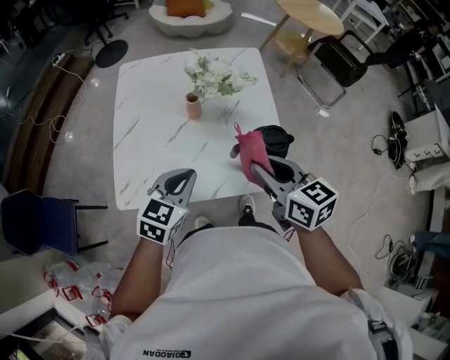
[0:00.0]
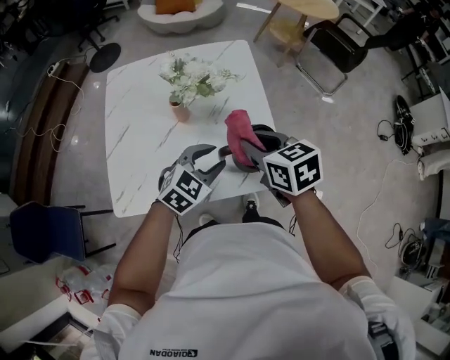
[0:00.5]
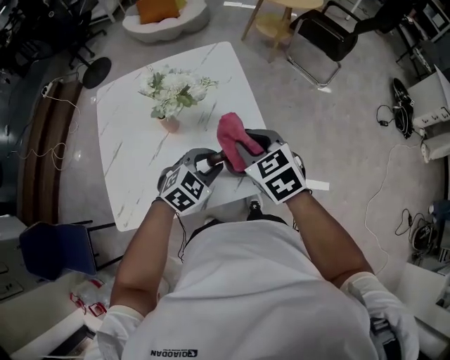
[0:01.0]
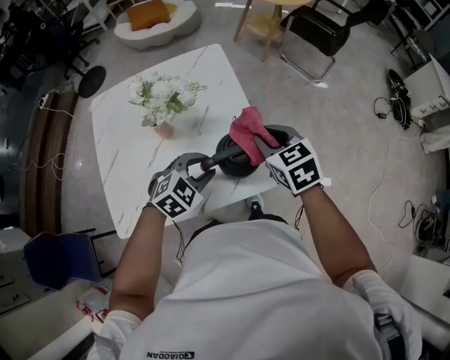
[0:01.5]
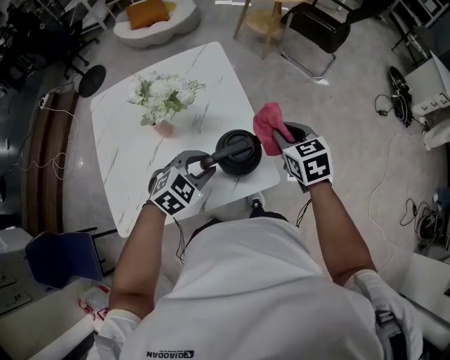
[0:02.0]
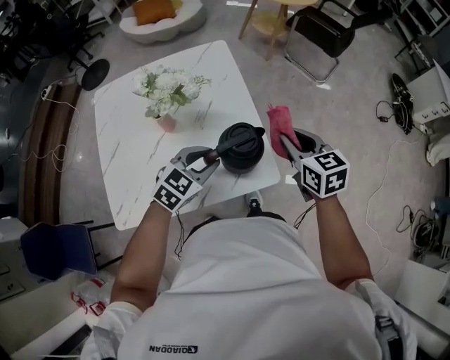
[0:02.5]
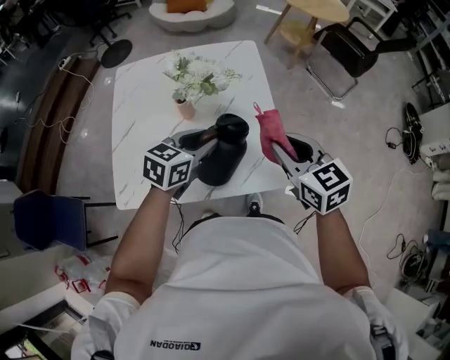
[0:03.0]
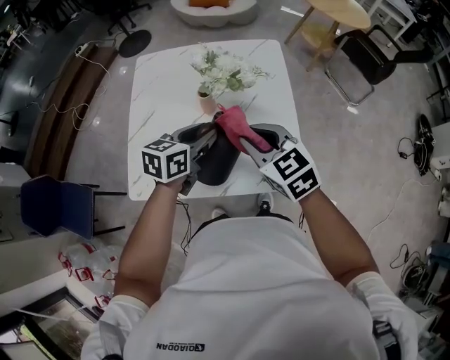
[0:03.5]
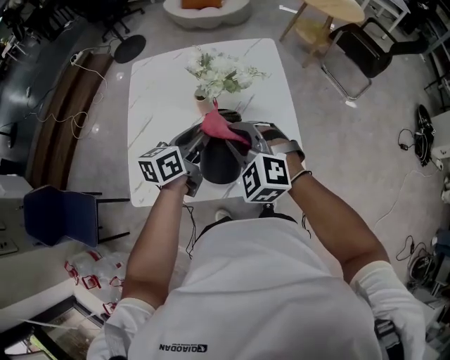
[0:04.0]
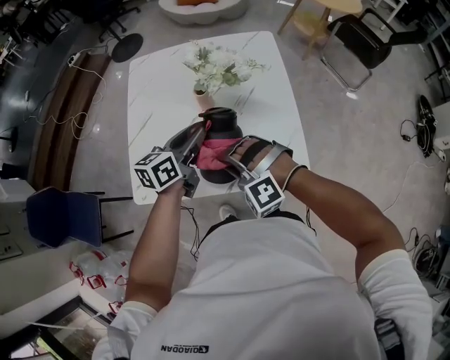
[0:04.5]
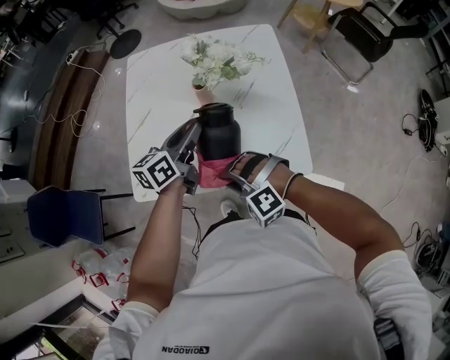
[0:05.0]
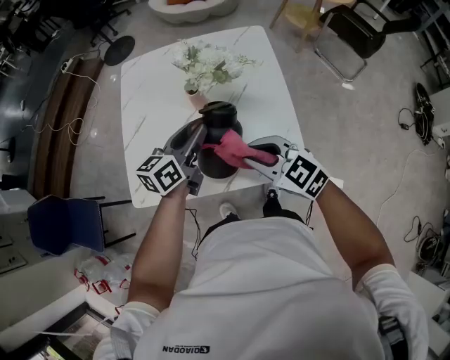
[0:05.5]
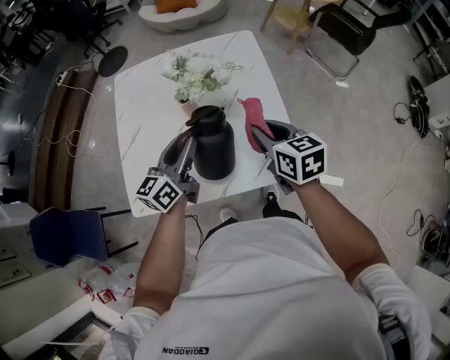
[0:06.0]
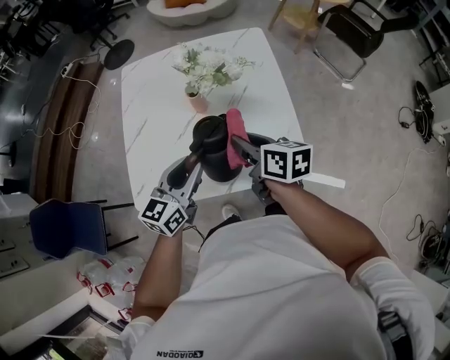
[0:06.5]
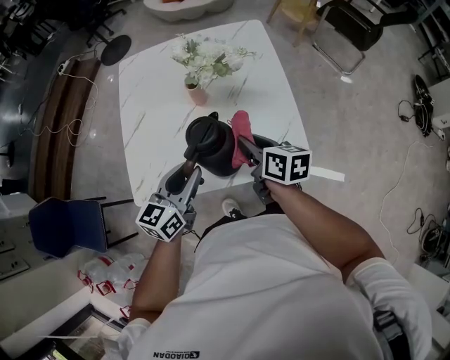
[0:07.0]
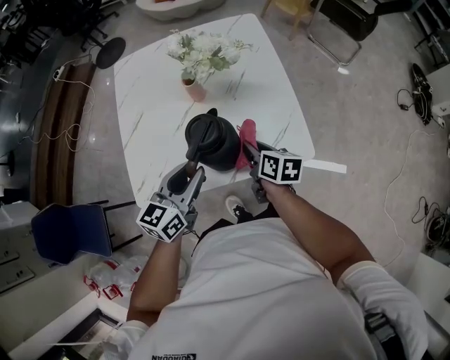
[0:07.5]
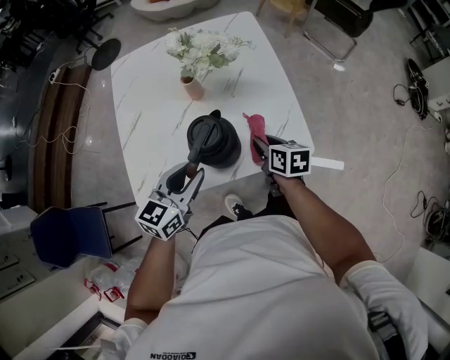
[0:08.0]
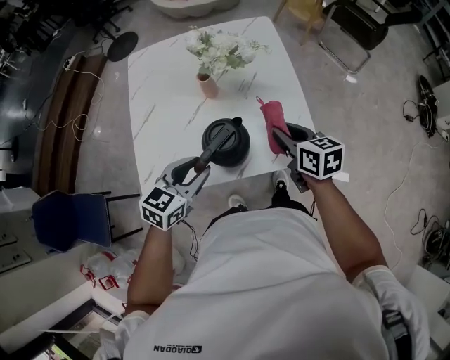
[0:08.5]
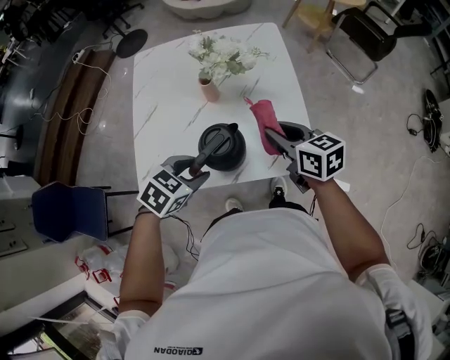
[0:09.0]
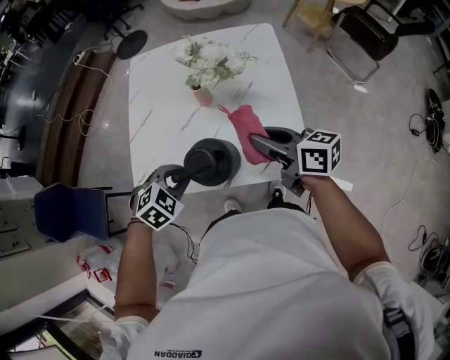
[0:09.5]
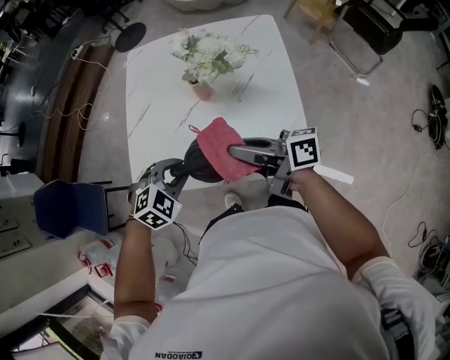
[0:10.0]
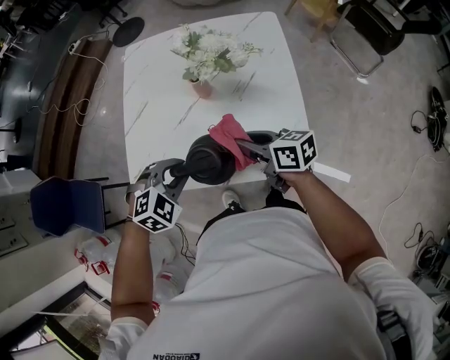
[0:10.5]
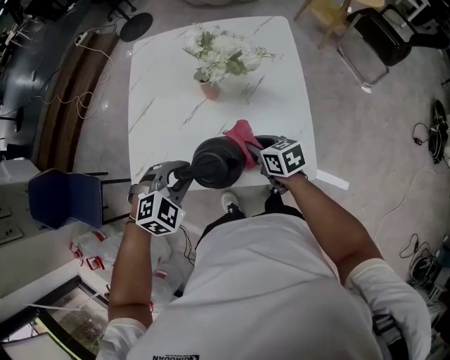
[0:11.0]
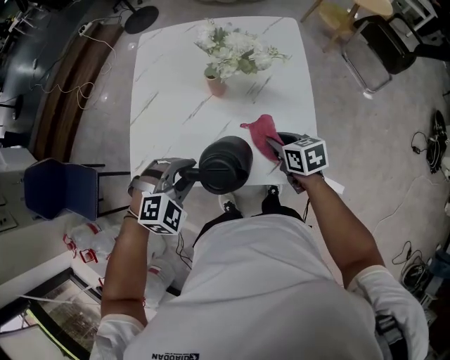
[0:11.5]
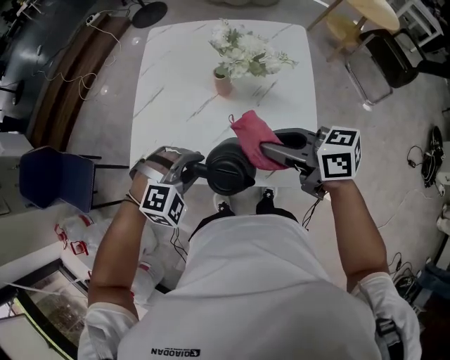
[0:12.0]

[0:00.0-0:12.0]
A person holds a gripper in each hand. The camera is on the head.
0:00.0 to 0:02.0: The right gripper shifts by approximately 25 cm, and rotates about 30 degrees. Meanwhile the left gripper moves roughly 20 cm, rotates approximately 40 degrees, and opens.
0:02.0 to 0:04.0: The right gripper ends up approximately 30 cm from where it was, and rotates around the line of its fingers by roughly 60 degrees, counterclockwise from behind, while the left gripper changes place by about 15 cm, and twists about 60 degrees counterclockwise, seen from behind.
0:04.0 to 0:06.0: The right gripper is displaced to the right by approximately 10 cm, and rotates around the line of its fingers by approximately 70 degrees, clockwise from behind.
0:06.0 to 0:08.0: The left gripper shifts some 10 cm backward, and changes its angle by approximately 30 degrees. The right gripper heads downward and backward, covering some 15 cm, and changes its angle by approximately 20 degrees.
0:08.0 to 0:10.0: The right gripper goes some 15 cm upward, and angles its fingers upward, by roughly 40 degrees. The left gripper tilts its fingers some 40 degrees downward.
0:10.0 to 0:12.0: The left gripper rotates approximately 30 degrees. The right gripper moves some 15 cm downward and comes back, and changes its angle by about 30 degrees.

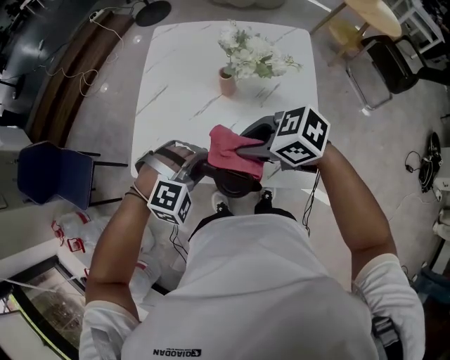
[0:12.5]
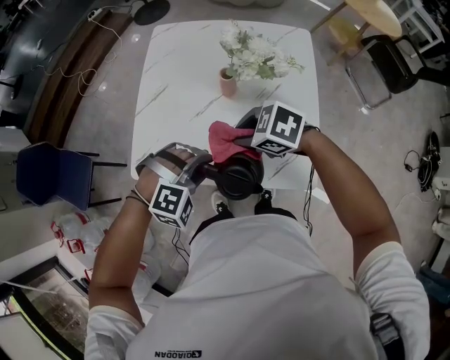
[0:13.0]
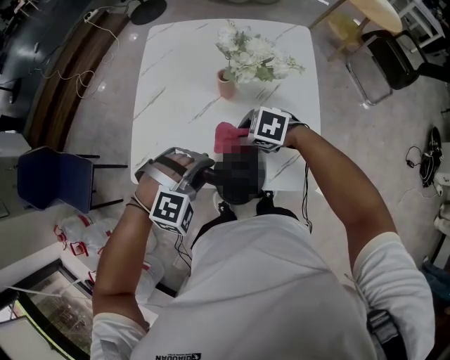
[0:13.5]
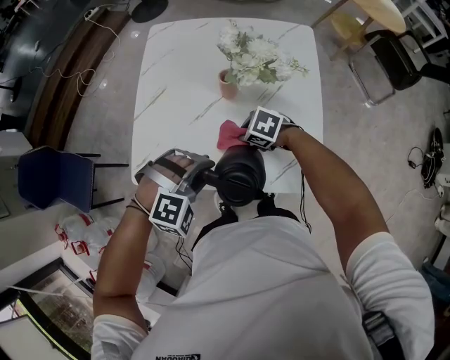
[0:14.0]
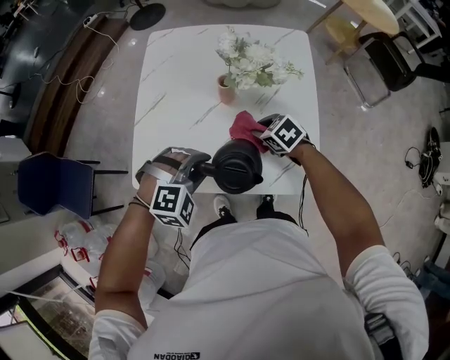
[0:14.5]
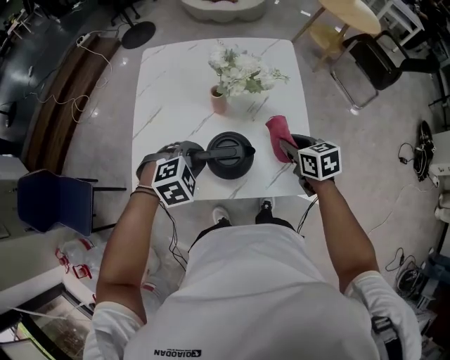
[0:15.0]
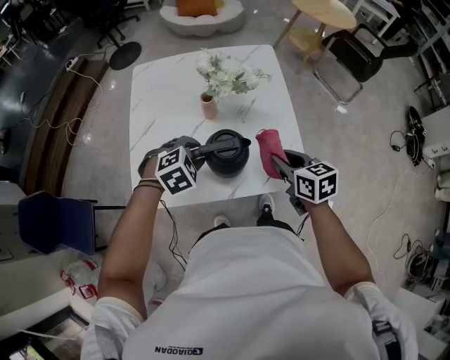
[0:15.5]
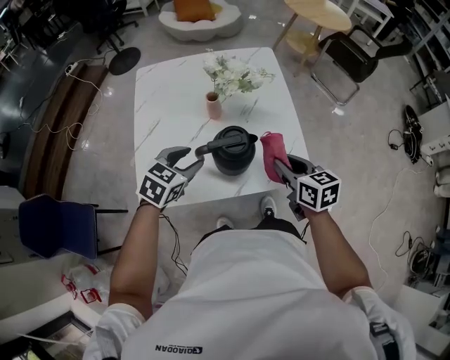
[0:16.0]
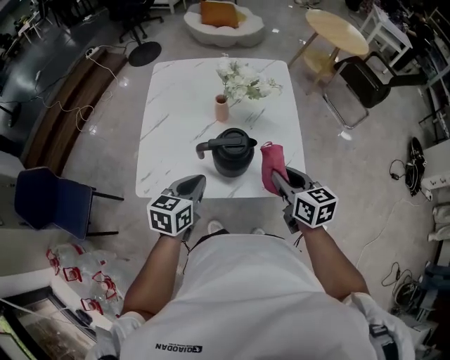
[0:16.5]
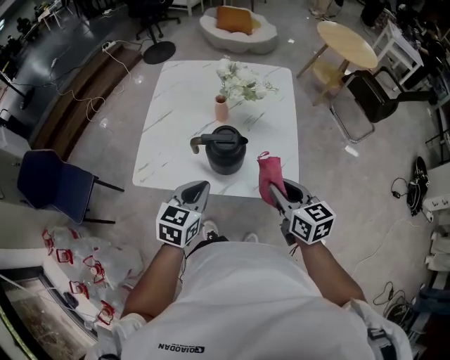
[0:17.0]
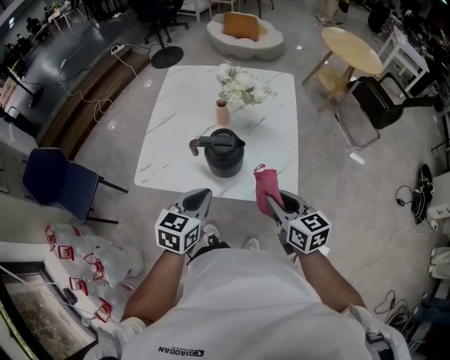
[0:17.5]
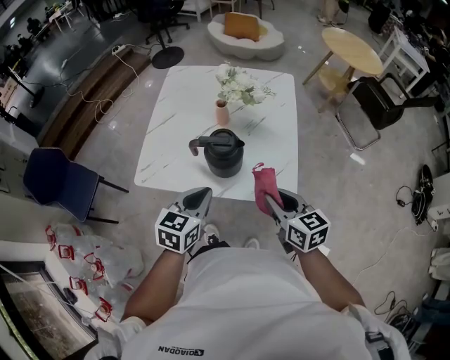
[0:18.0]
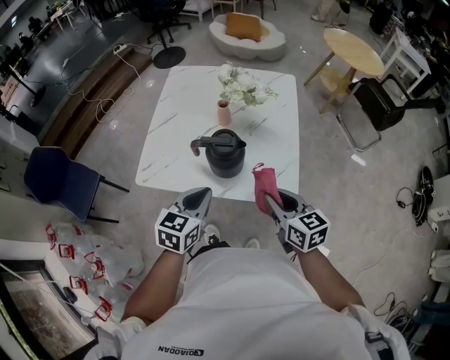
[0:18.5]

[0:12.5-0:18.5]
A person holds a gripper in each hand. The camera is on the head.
0:12.5 to 0:14.5: The right gripper travels downward by some 15 cm, and rotates approximately 30 degrees.
0:14.5 to 0:16.5: The left gripper changes place by some 5 cm, rolls counterclockwise, seen from behind, by about 80 degrees, and closes up, while the right gripper heads upward, covering some 15 cm, and changes its angle by some 50 degrees.
0:16.5 to 0:18.5: The left gripper shifts approximately 10 cm backward and to the right; the right gripper moves backward, approximately 5 cm.

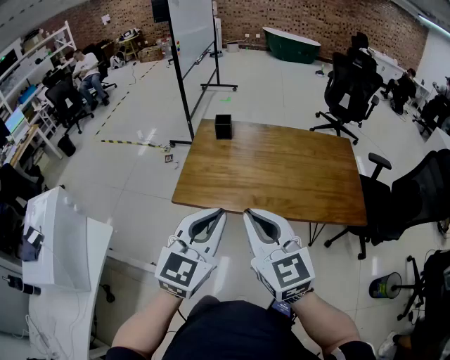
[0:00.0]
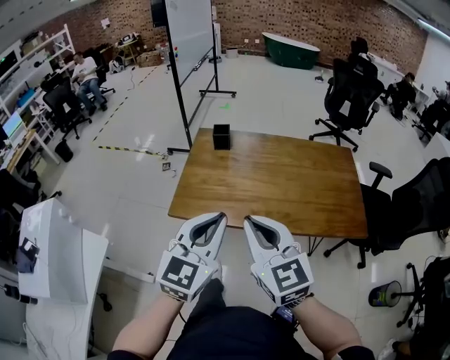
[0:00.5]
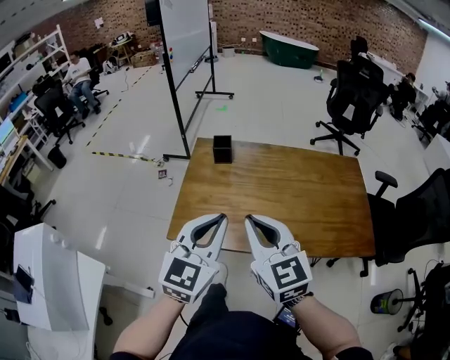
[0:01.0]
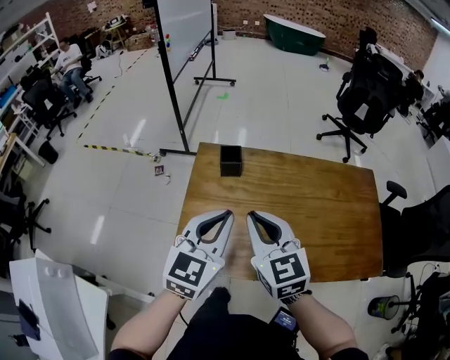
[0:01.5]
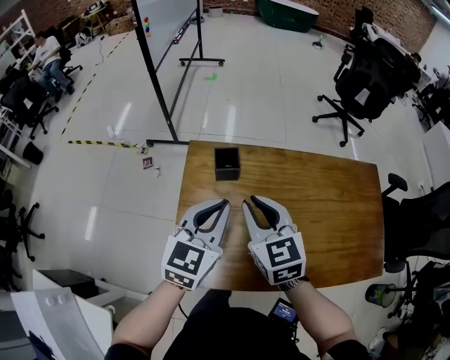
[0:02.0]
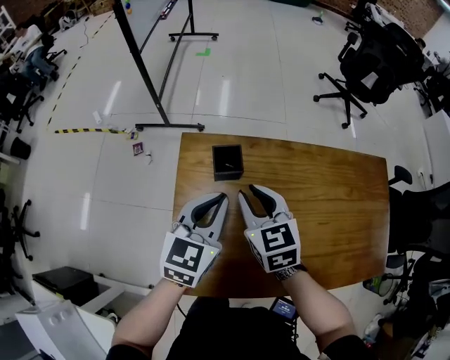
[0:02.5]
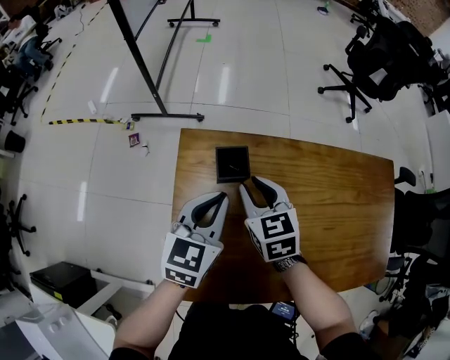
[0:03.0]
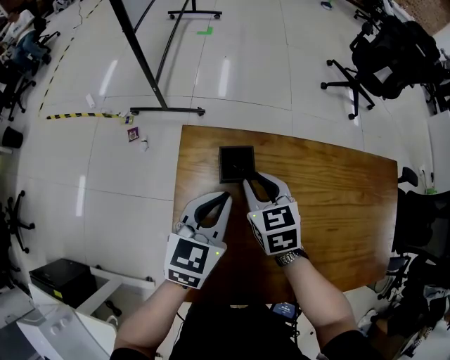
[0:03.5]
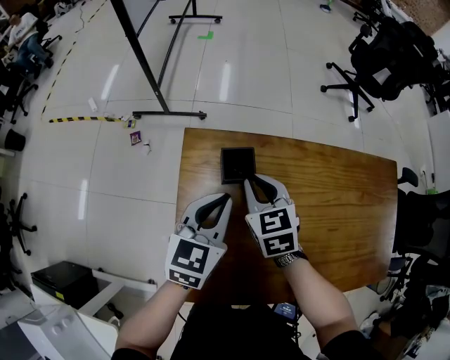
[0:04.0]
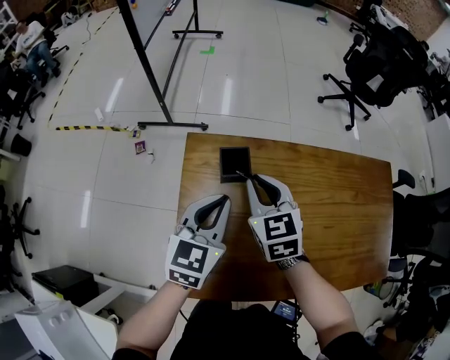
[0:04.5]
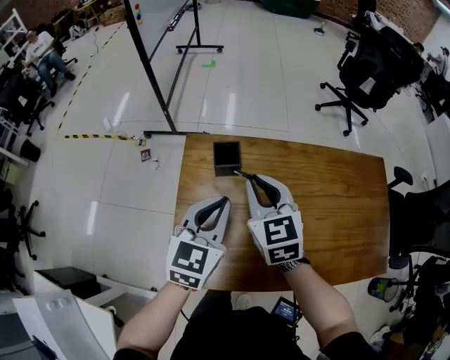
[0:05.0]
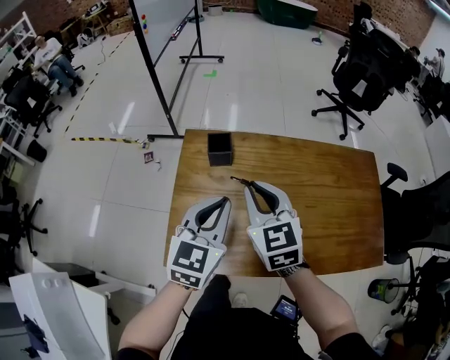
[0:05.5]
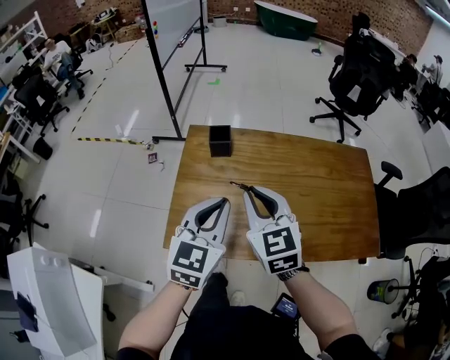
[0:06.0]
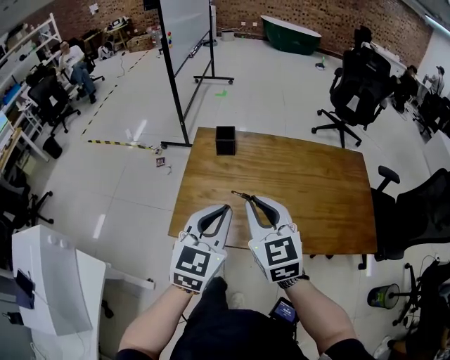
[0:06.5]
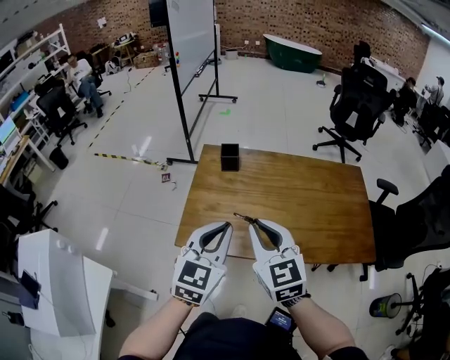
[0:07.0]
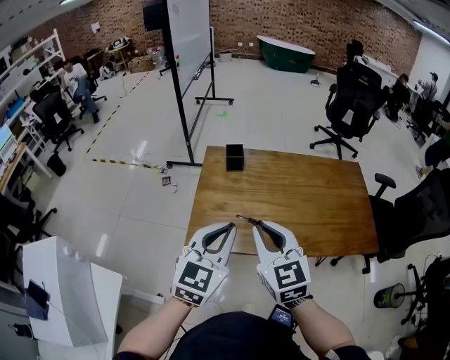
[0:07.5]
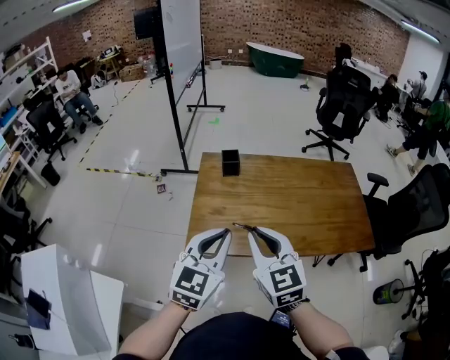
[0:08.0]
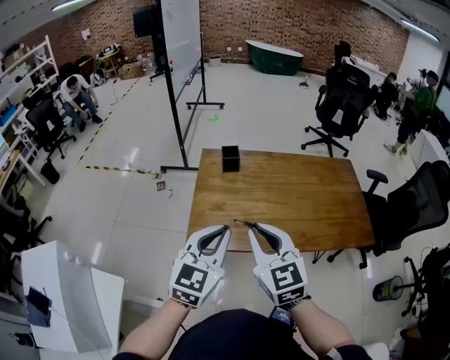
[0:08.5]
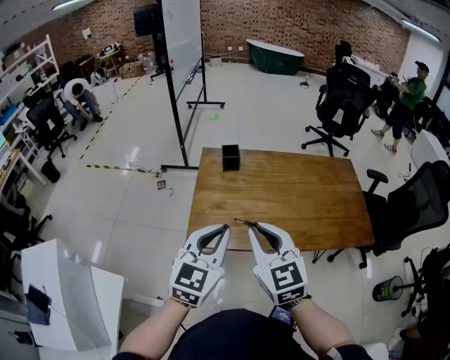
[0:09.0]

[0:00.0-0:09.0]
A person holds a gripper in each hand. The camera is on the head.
0:00.0 to 0:02.0: Both grippers are carried forward, approximately 50 cm.
0:02.0 to 0:04.5: The left gripper heads downward and forward, covering roughly 15 cm. The right gripper heads forward and downward, covering some 15 cm.
0:04.5 to 0:07.0: Both grippers move backward and upward, approximately 40 cm.
0:07.0 to 0:09.0: The right gripper is displaced backward and to the left by some 10 cm; the left gripper is displaced to the left and backward by approximately 10 cm.
